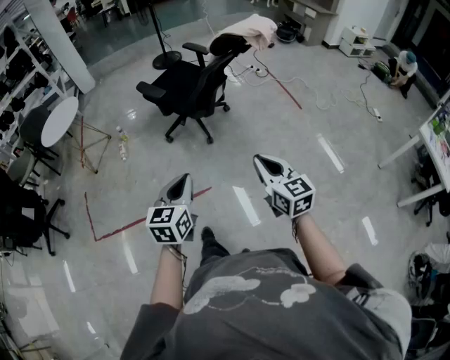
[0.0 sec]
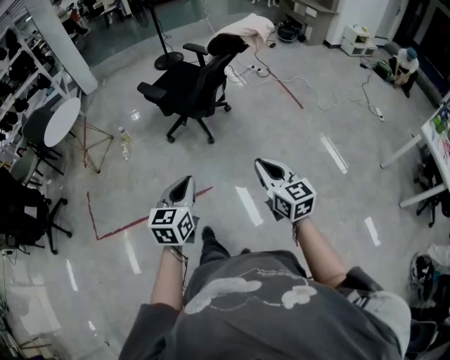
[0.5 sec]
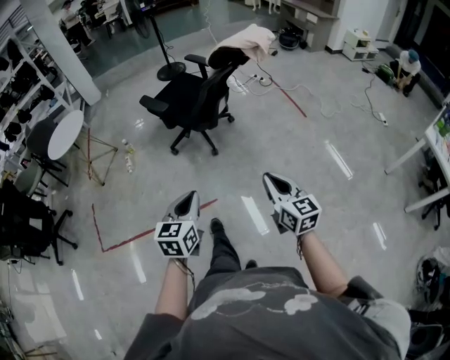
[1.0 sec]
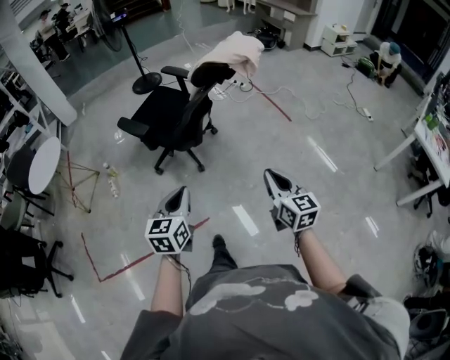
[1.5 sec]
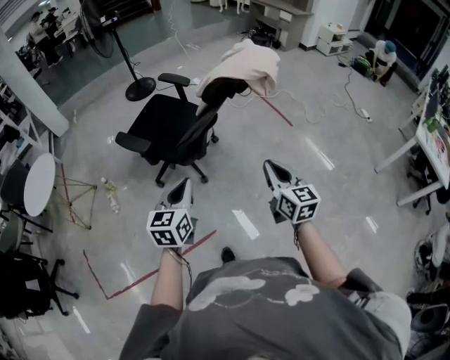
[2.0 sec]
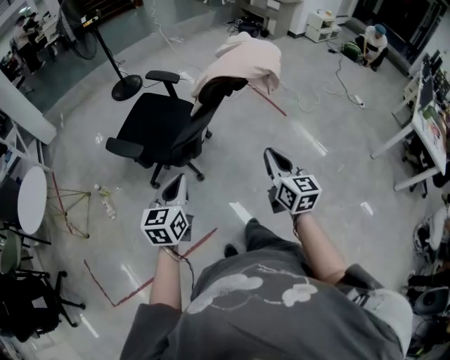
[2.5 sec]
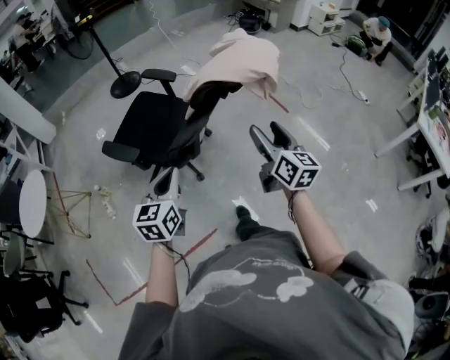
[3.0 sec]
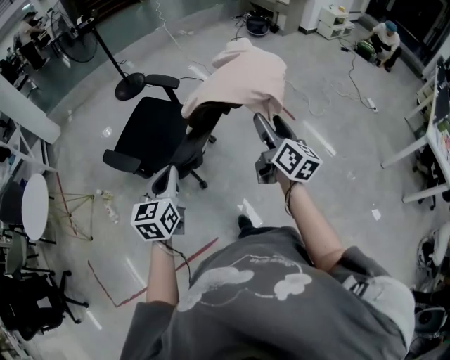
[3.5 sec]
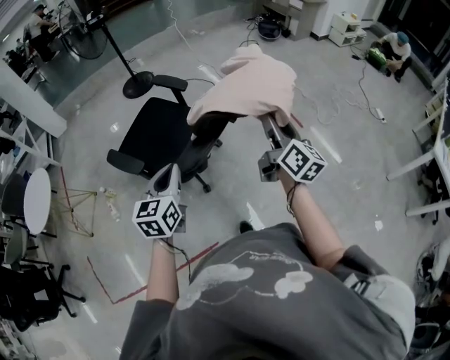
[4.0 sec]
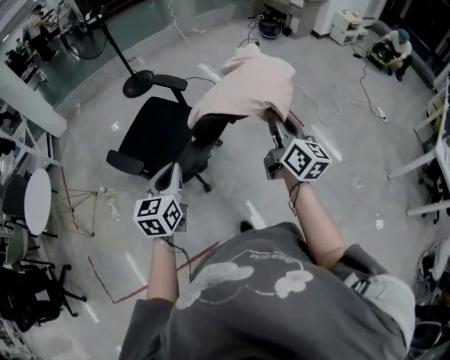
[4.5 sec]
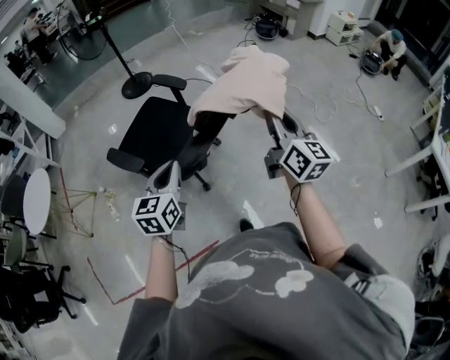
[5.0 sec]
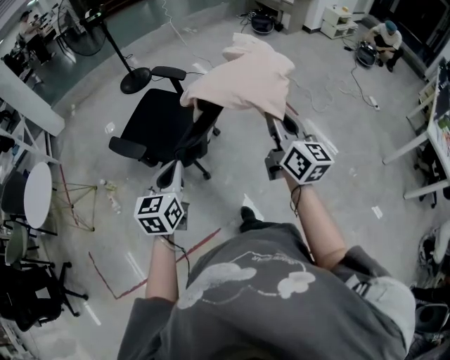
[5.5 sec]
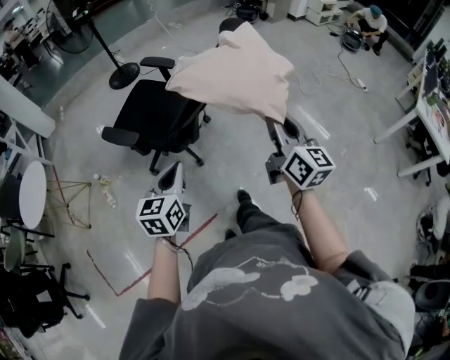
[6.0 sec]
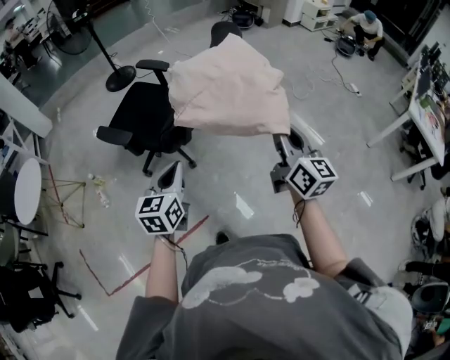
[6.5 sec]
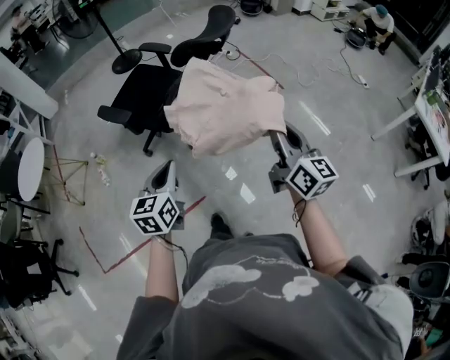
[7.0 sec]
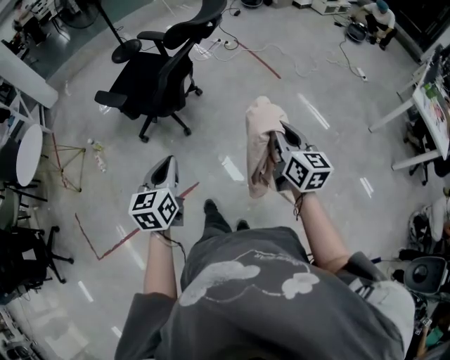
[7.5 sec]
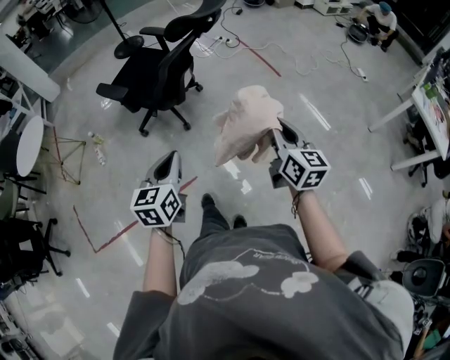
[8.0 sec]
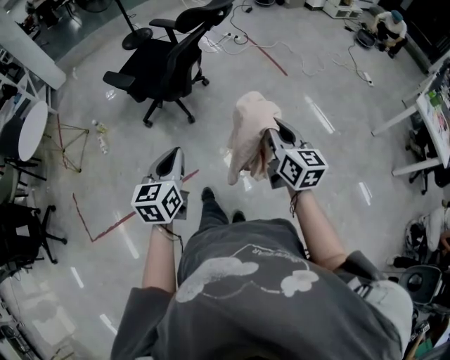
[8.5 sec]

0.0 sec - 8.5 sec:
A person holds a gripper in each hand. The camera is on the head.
0.0 sec - 2.0 sec: Both grippers travel together forward, some 30 cm. The right gripper turns by some 20 degrees.
2.0 sec - 4.0 sec: Both grippers move forward, roughly 25 cm. The right gripper rotates roughly 30 degrees, and opens.
4.0 sec - 6.5 sec: Both grippers travel together backward, approximately 25 cm. The right gripper closes.
6.5 sec - 8.5 sec: The right gripper moves backward and downward, approximately 20 cm, while the left gripper goes about 20 cm backward.

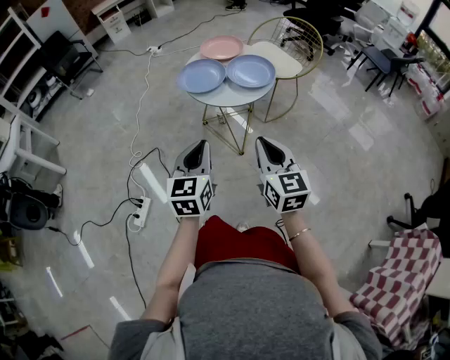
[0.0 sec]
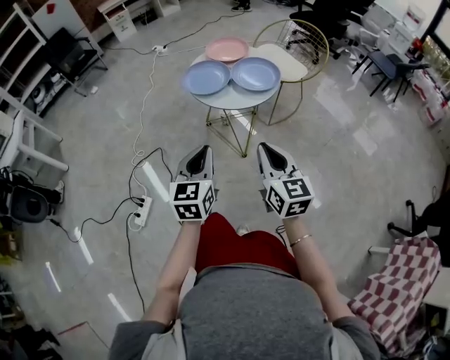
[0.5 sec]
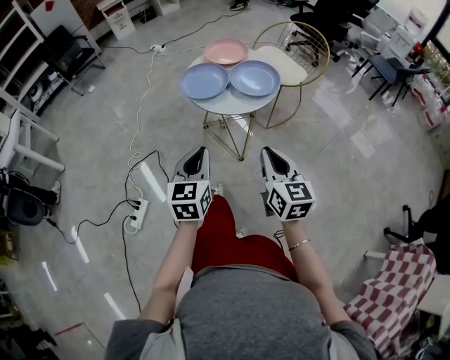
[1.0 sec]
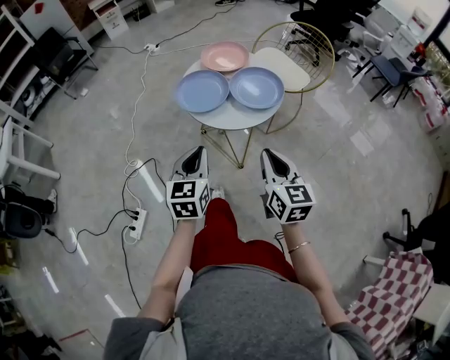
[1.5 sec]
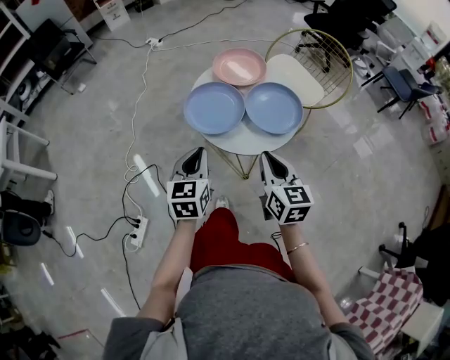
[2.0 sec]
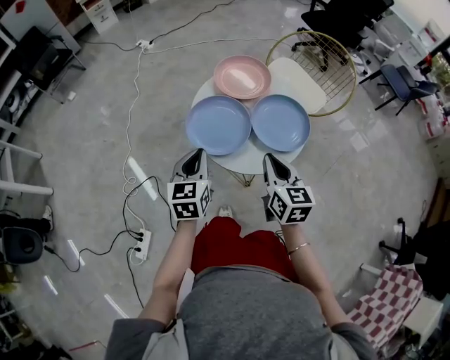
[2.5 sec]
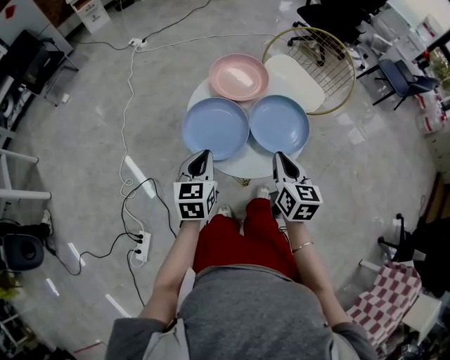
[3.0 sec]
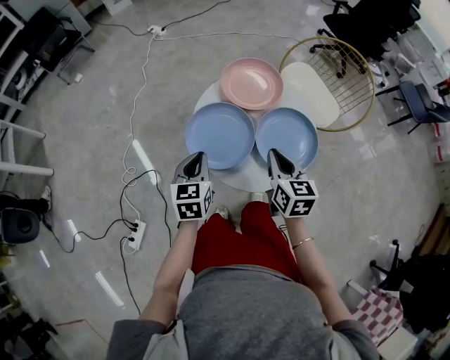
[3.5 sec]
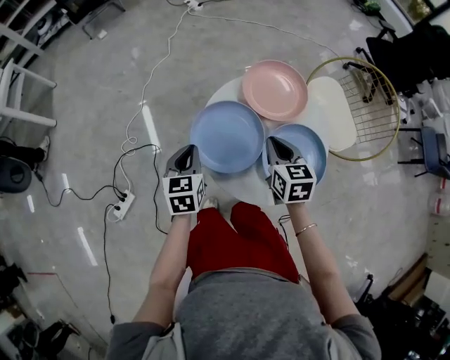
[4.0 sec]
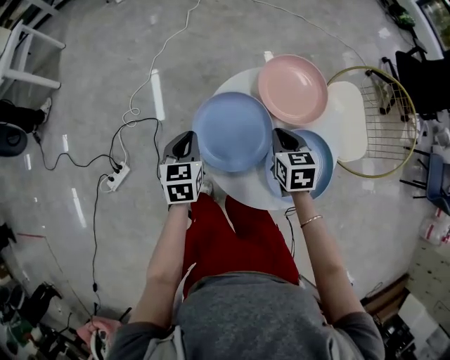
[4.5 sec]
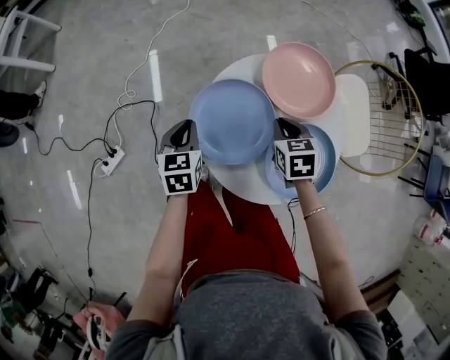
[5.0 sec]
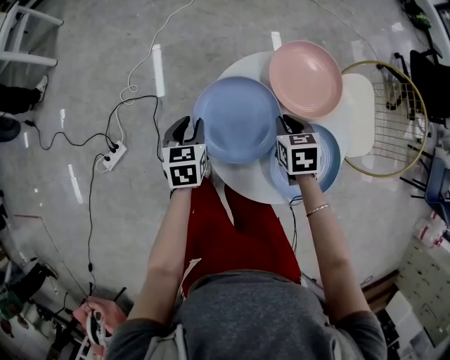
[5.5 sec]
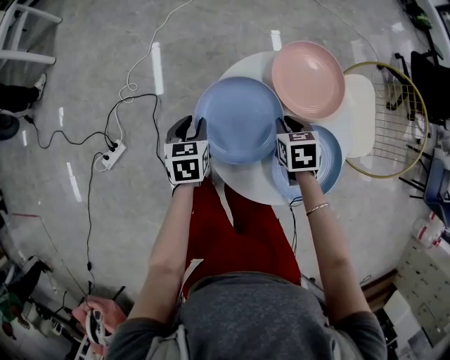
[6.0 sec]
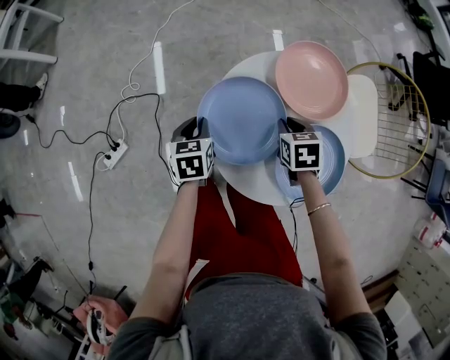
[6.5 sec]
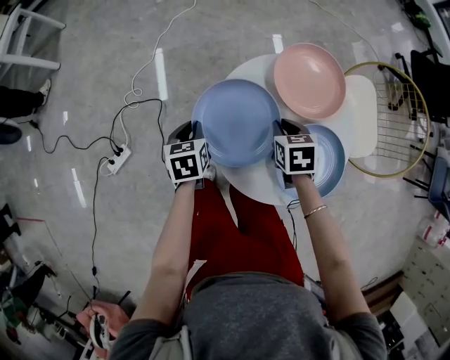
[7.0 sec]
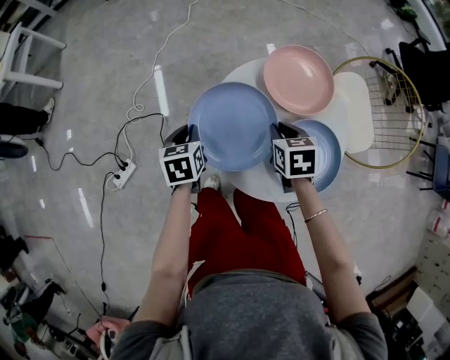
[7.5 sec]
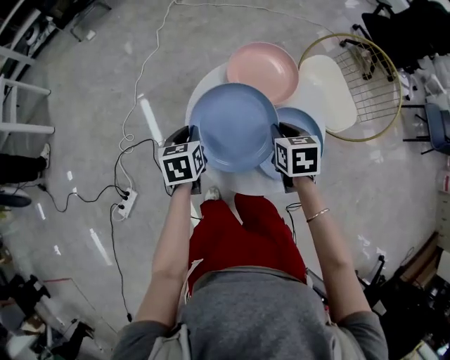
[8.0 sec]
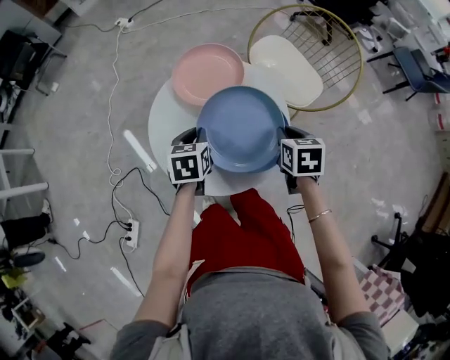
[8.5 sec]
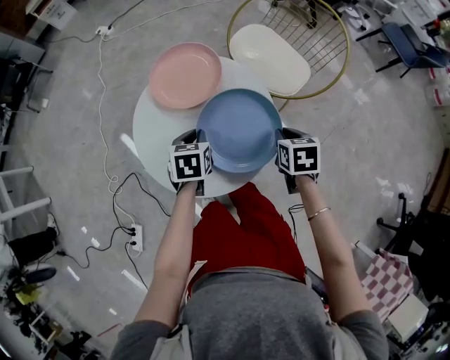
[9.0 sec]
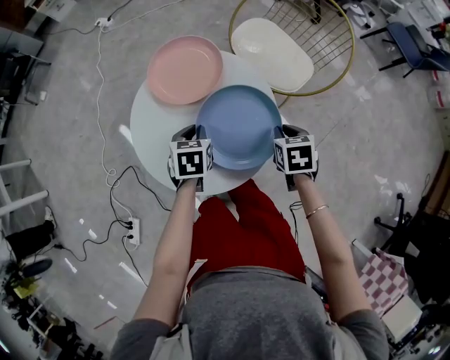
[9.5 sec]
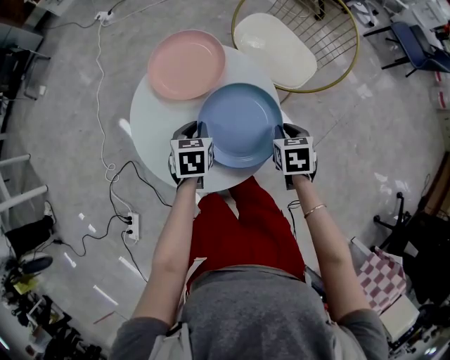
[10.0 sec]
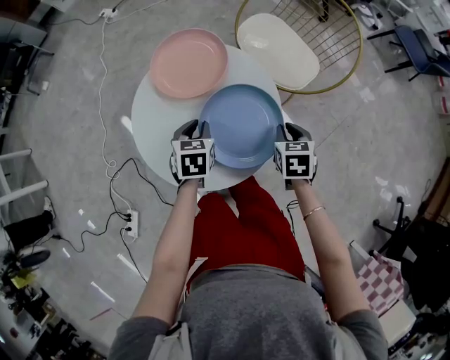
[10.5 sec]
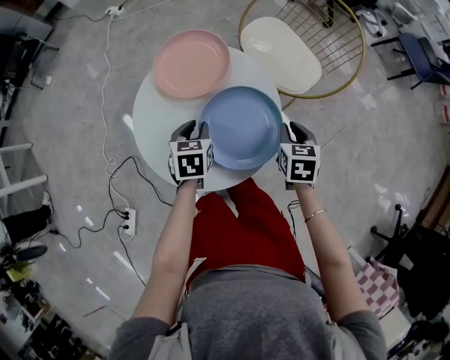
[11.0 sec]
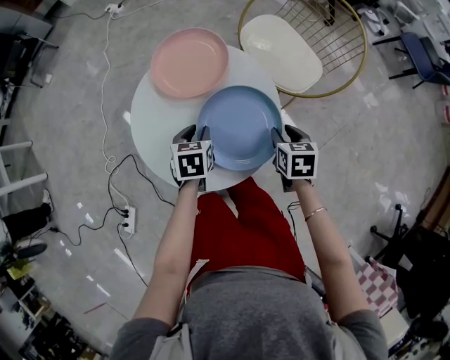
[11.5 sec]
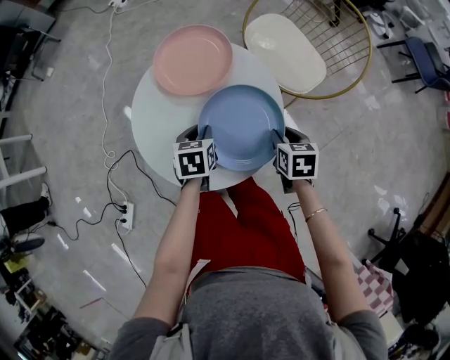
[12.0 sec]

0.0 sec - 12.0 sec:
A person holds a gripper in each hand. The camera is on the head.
0.0 sec - 2.0 sec: Both grippers move forward, approximately 25 cm.
2.0 sec - 4.0 sec: The right gripper ends up roughly 25 cm from where it was, and changes its angle by some 30 degrees, while the left gripper moves some 20 cm, and turns by about 20 degrees.
4.0 sec - 6.0 sec: The right gripper goes about 10 cm downward and forward, and swivels roughly 30 degrees. The left gripper travels downward by about 10 cm, and opens up.
6.0 sec - 8.0 sec: The left gripper heads upward, covering some 5 cm, while the right gripper travels upward and backward by roughly 10 cm, and rotates about 20 degrees.
8.0 sec - 10.0 sec: The right gripper ends up some 20 cm from where it was, and turns by some 20 degrees. The left gripper ends up some 20 cm from where it was, and rotates about 30 degrees.
10.0 sec - 12.0 sec: There are only small adjustments of the grippers.

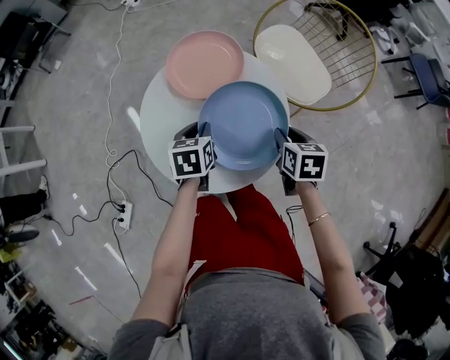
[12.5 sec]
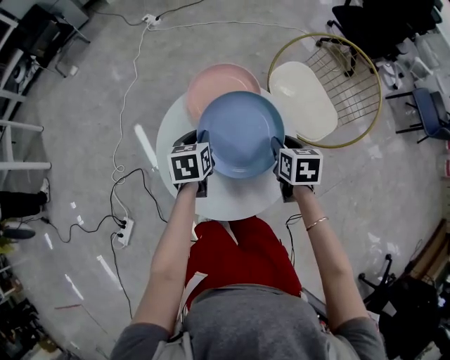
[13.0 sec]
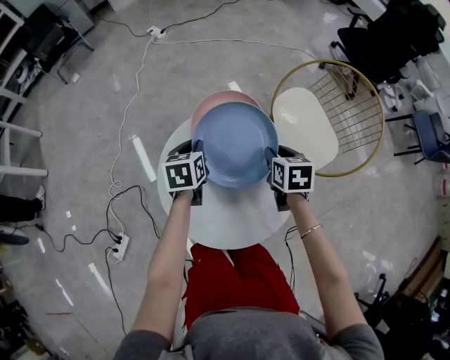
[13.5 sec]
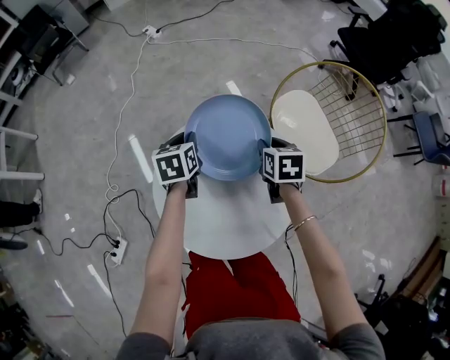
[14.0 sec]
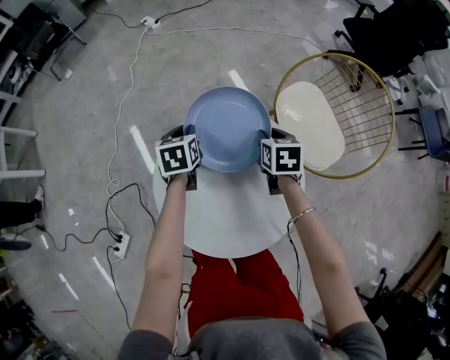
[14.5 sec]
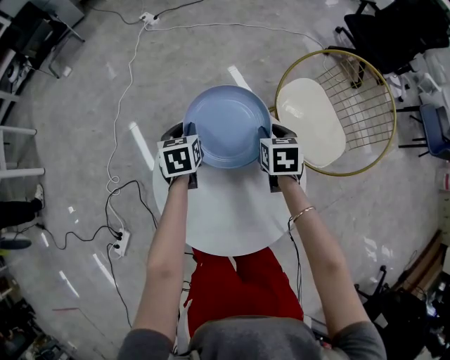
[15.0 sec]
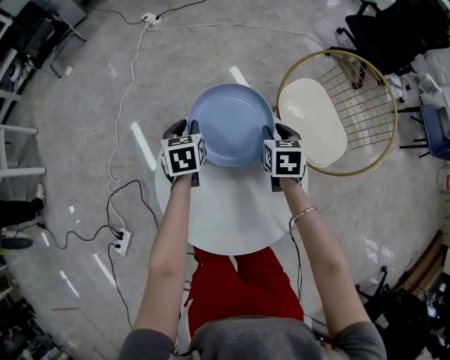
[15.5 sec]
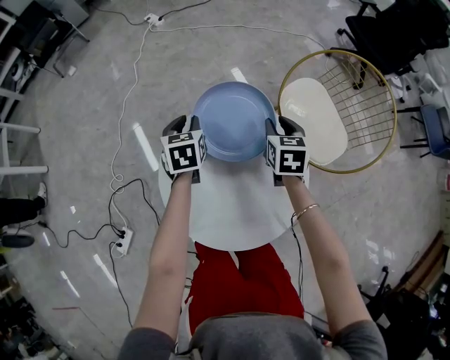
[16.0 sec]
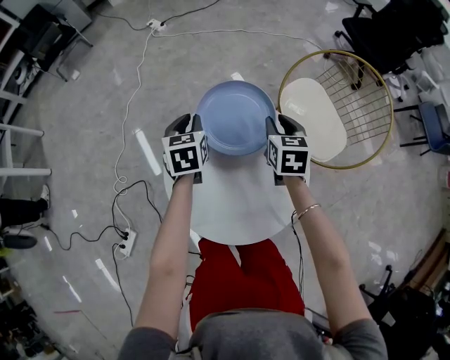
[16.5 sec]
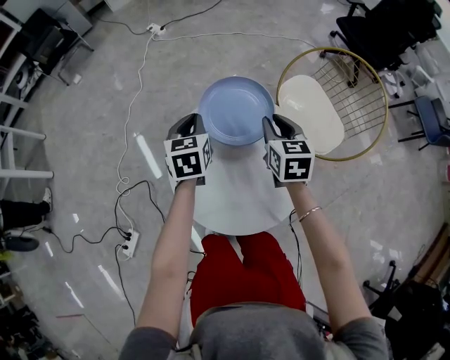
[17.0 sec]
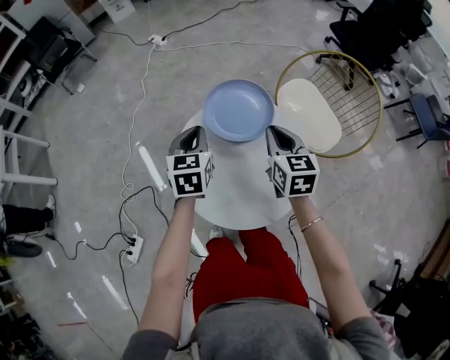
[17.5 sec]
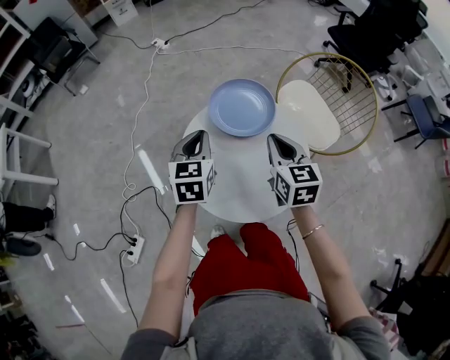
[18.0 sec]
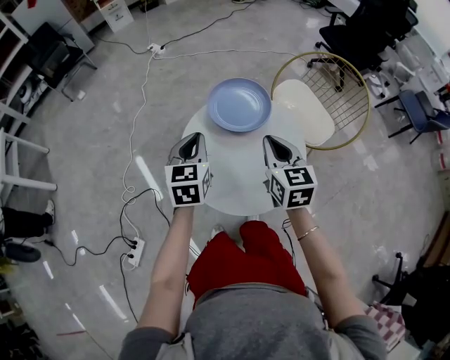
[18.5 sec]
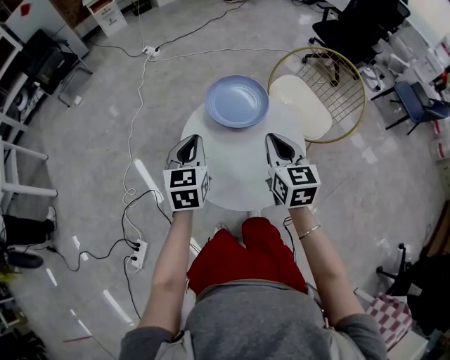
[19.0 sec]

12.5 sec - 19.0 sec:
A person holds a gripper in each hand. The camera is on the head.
12.5 sec - 14.5 sec: Both grippers move forward and to the left, approximately 25 cm.
14.5 sec - 17.0 sec: Both grippers move upward and backward, some 10 cm. The right gripper turns by approximately 20 degrees.
17.0 sec - 19.0 sec: Both grippers travel together backward and upward, about 15 cm.
